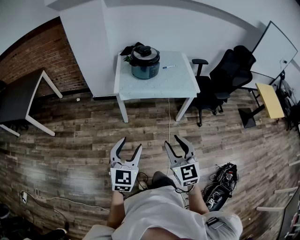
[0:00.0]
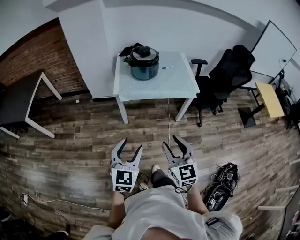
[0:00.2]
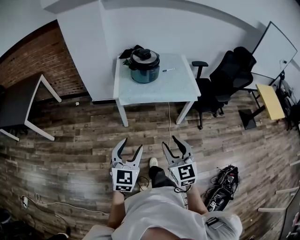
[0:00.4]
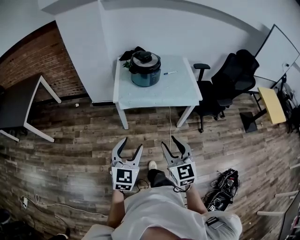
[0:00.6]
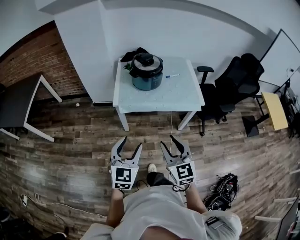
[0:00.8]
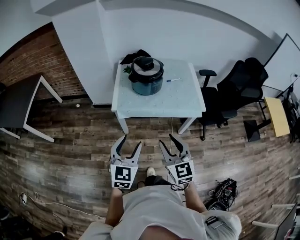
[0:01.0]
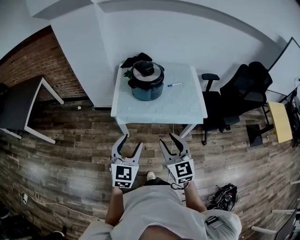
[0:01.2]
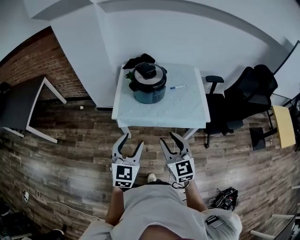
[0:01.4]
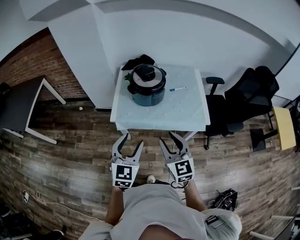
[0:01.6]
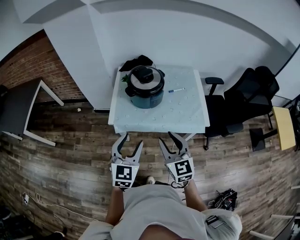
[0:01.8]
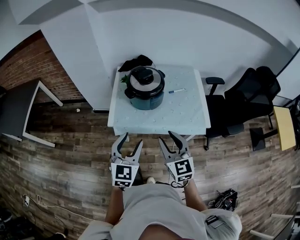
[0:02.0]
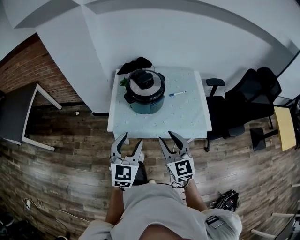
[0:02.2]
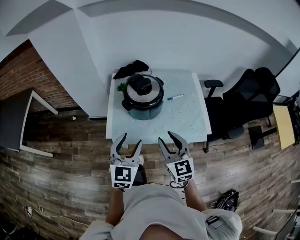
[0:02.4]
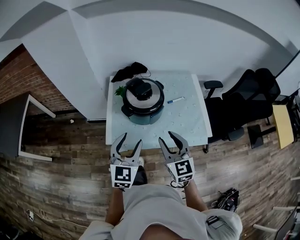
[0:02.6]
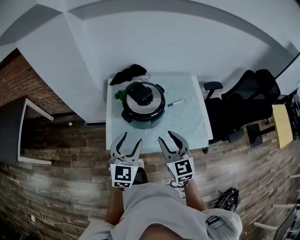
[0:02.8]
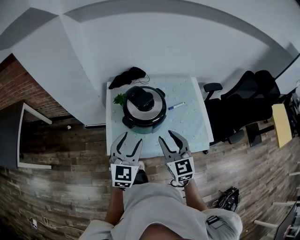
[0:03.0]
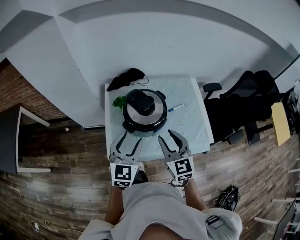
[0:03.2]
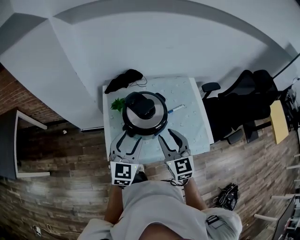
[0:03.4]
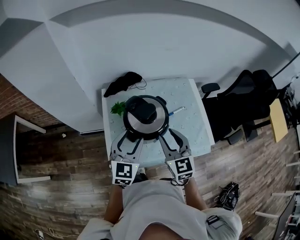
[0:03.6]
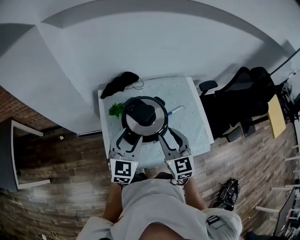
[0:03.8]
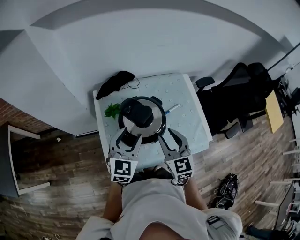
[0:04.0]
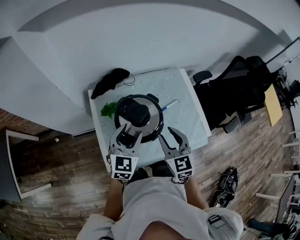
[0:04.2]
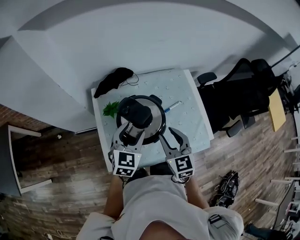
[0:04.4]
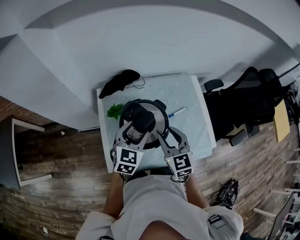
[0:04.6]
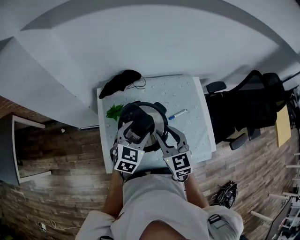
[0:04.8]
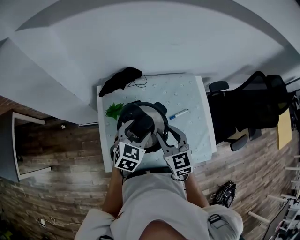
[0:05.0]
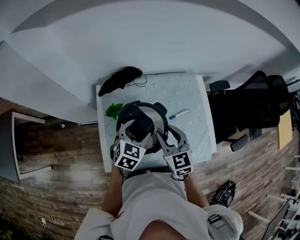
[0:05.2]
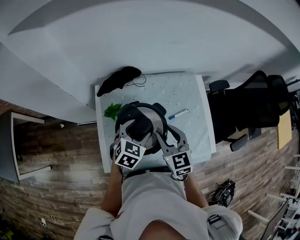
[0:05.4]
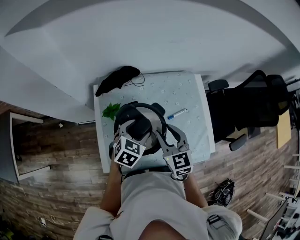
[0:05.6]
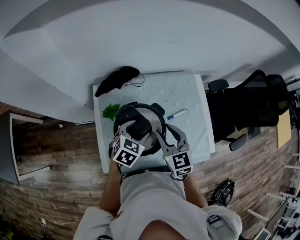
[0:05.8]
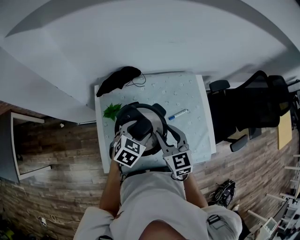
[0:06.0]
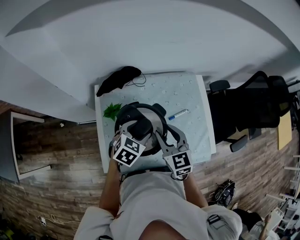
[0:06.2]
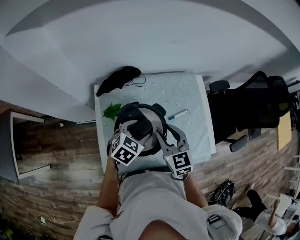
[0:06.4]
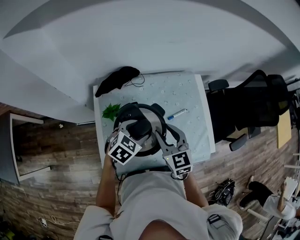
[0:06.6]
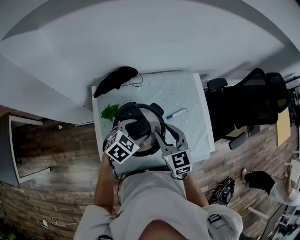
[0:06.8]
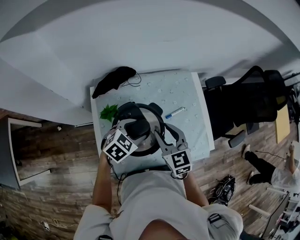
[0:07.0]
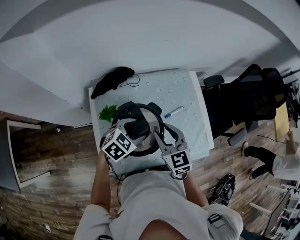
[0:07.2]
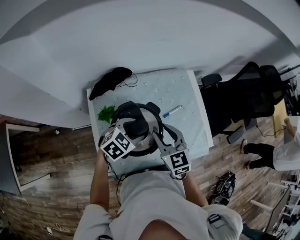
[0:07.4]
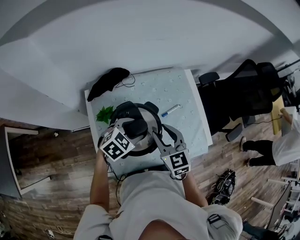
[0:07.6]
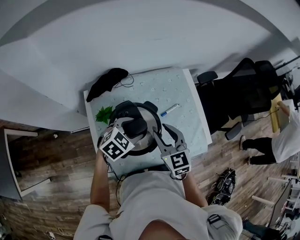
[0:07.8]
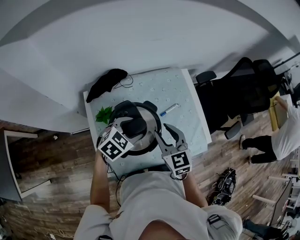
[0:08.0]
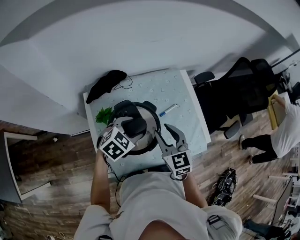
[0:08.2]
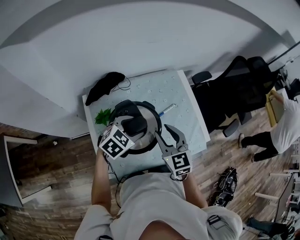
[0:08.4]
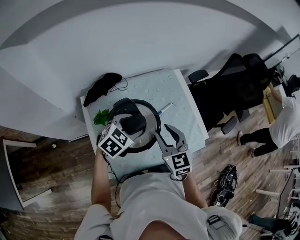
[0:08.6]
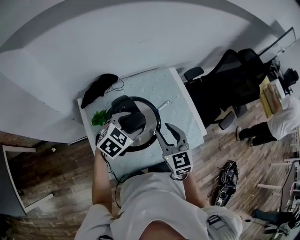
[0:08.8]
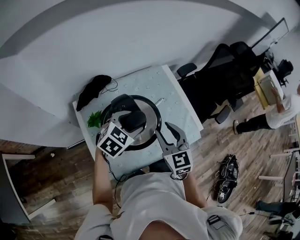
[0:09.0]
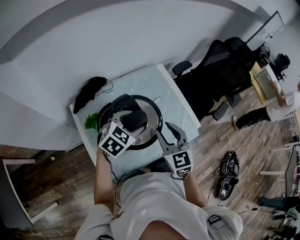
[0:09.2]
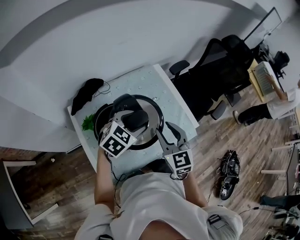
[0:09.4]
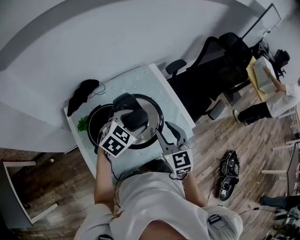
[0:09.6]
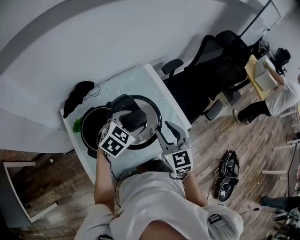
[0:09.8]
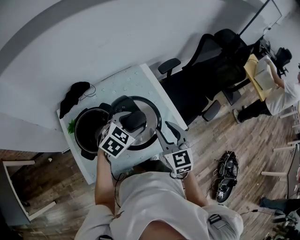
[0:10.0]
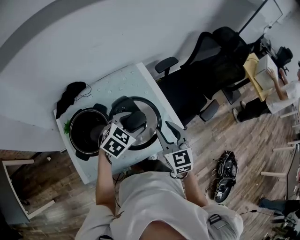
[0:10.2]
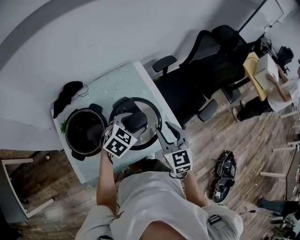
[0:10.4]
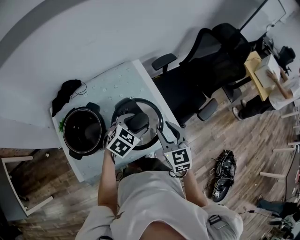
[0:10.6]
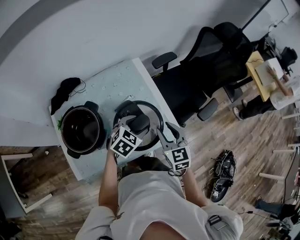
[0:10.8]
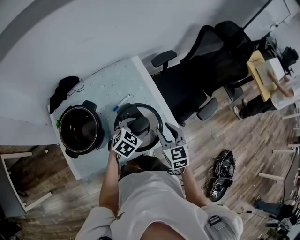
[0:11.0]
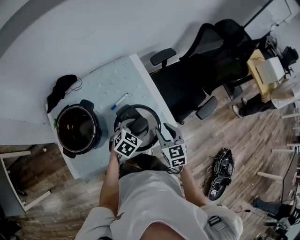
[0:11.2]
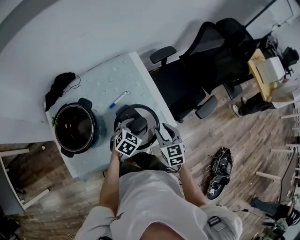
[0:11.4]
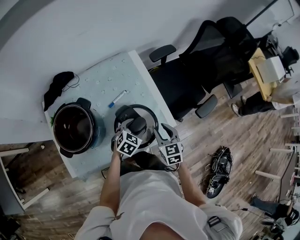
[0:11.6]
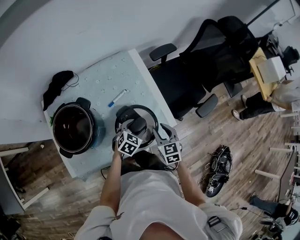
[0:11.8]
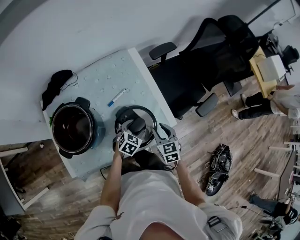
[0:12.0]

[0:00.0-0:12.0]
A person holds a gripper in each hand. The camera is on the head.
0:00.0 to 0:01.6: Both grippers travel together forward, some 30 cm.
0:01.6 to 0:03.0: Both grippers move forward, about 25 cm.
0:03.0 to 0:04.4: Both grippers move forward, roughly 15 cm.
0:04.4 to 0:06.0: The left gripper heads downward and forward, covering approximately 10 cm, and rotates some 20 degrees, while the right gripper goes about 10 cm forward.
0:06.0 to 0:07.6: The left gripper rotates some 20 degrees.
0:07.6 to 0:09.0: The left gripper travels upward by roughly 5 cm. The right gripper shifts approximately 5 cm to the right.
0:09.0 to 0:10.4: Both grippers travel together to the right, some 20 cm.
0:10.4 to 0:12.0: Both grippers travel together downward, about 20 cm.

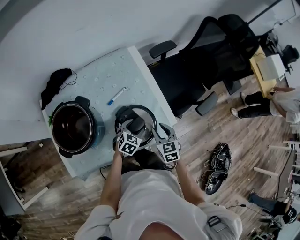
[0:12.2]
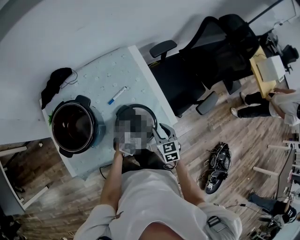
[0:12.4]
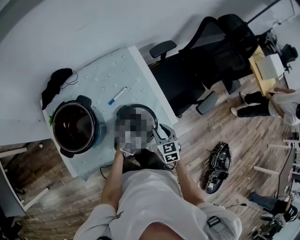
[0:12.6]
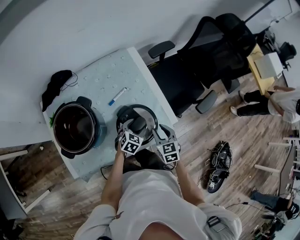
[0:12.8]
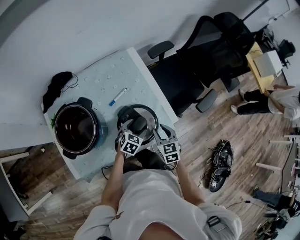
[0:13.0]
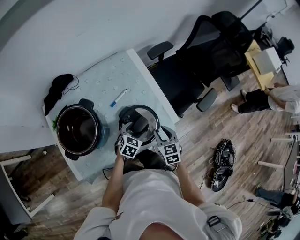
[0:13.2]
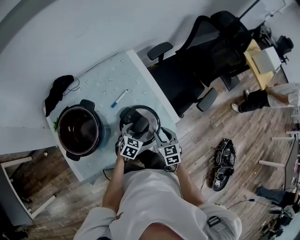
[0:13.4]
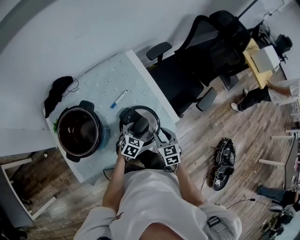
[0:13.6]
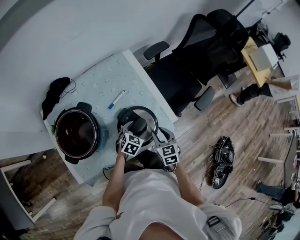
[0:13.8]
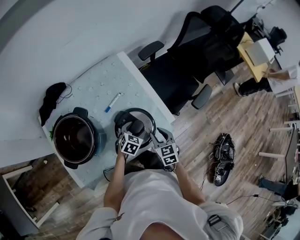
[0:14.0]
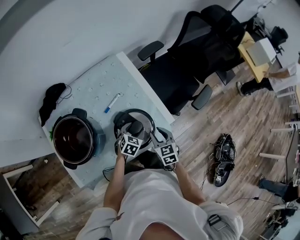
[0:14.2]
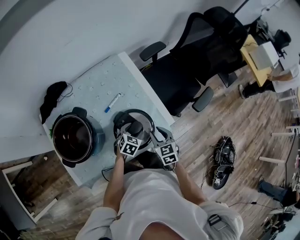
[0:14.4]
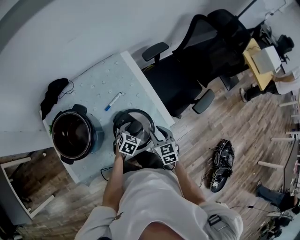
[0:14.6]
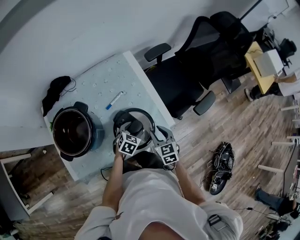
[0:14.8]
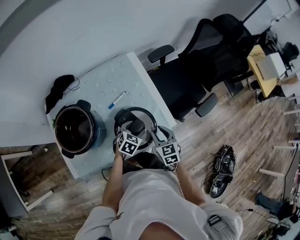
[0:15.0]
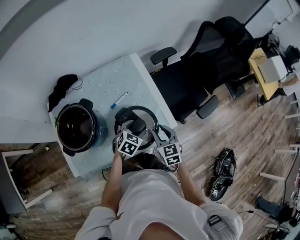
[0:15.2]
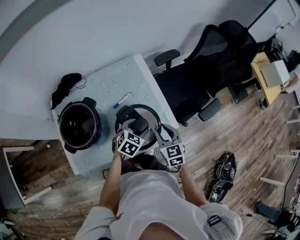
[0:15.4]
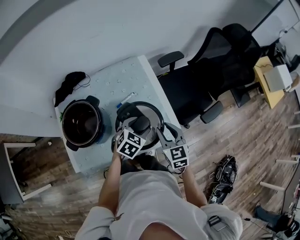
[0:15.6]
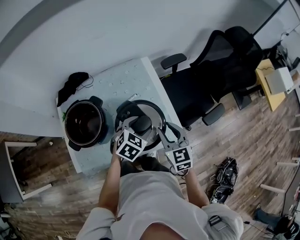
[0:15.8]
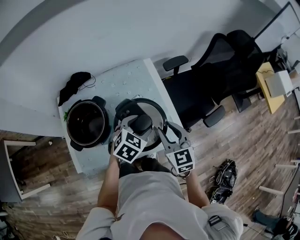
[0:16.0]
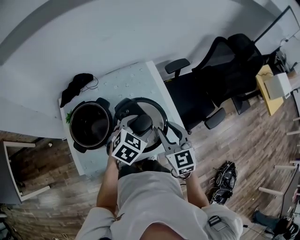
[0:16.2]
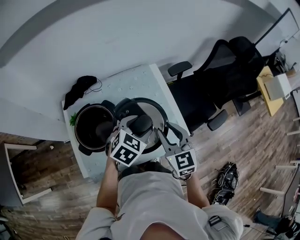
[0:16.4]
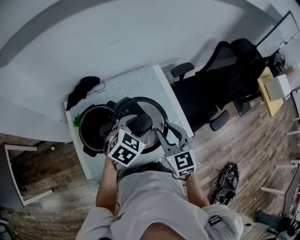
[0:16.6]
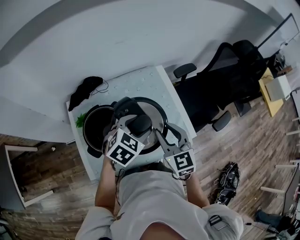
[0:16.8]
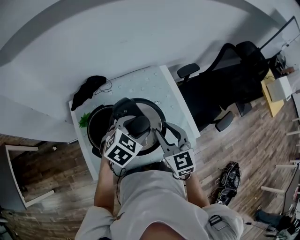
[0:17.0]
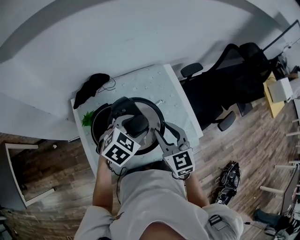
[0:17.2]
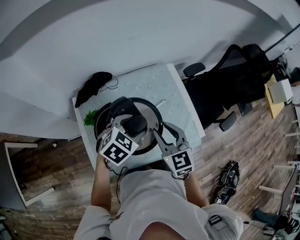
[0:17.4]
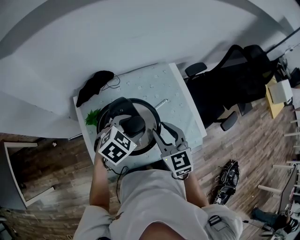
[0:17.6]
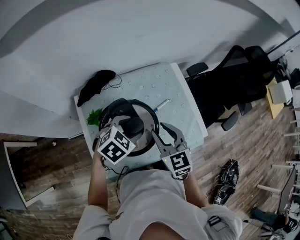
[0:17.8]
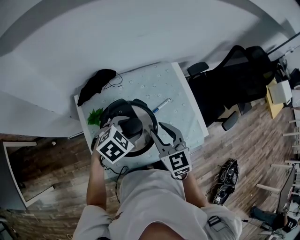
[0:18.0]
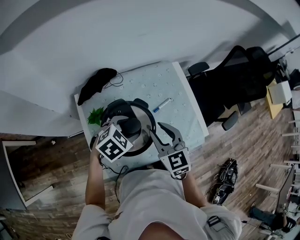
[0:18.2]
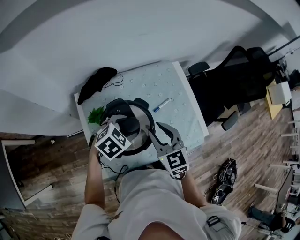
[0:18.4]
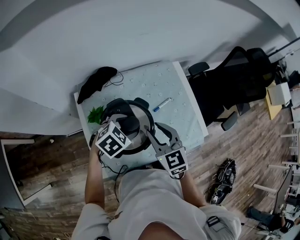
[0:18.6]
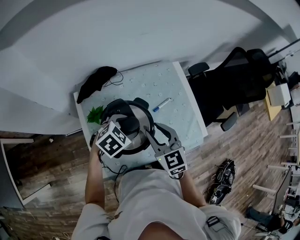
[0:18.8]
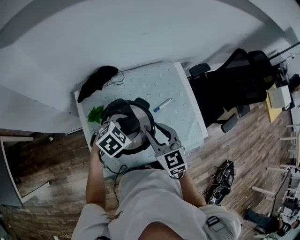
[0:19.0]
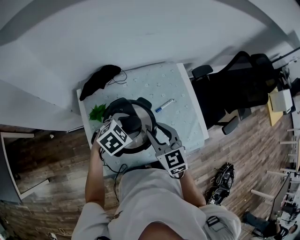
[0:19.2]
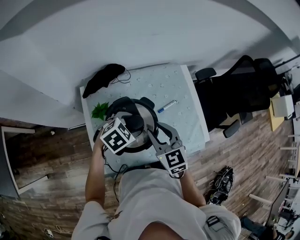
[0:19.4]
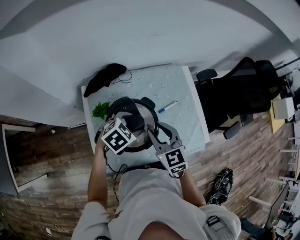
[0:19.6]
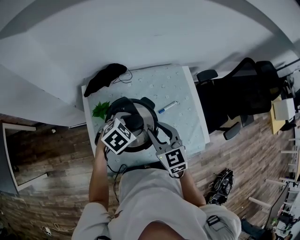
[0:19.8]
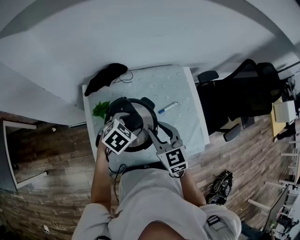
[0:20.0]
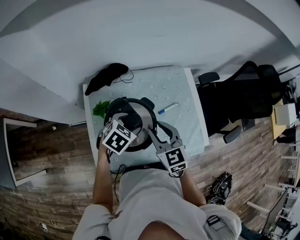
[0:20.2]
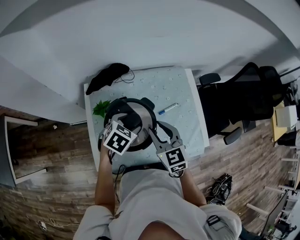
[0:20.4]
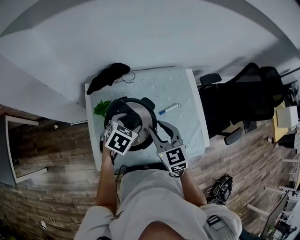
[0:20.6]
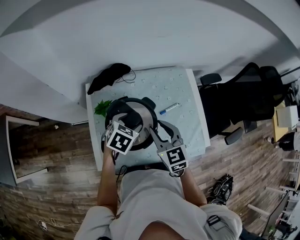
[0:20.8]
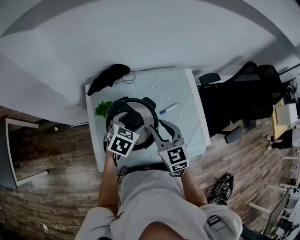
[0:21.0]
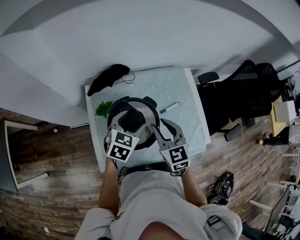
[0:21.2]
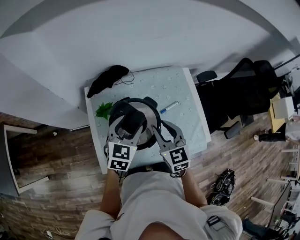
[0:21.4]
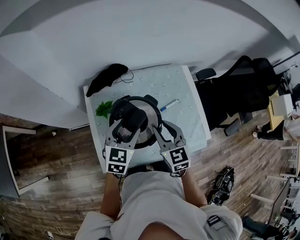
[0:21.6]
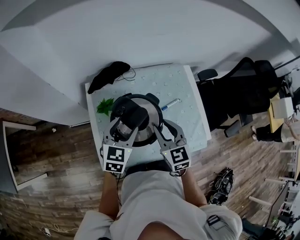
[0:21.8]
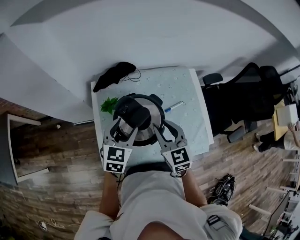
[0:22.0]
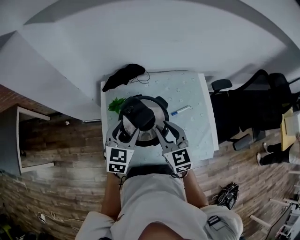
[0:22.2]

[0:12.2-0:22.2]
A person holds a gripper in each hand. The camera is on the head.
0:12.2 to 0:15.0: The grippers make only small movements.
0:15.0 to 0:16.4: The left gripper travels upward by roughly 20 cm, while the right gripper heads upward and to the left, covering some 25 cm, and rotates some 20 degrees.
0:16.4 to 0:18.0: The two grippers go some 20 cm to the left.
0:18.0 to 0:19.4: The grippers make only small movements.
0:19.4 to 0:20.8: The left gripper swivels approximately 30 degrees.
0:20.8 to 0:22.2: The left gripper shifts approximately 10 cm upward, to the left and backward, and turns by some 30 degrees.

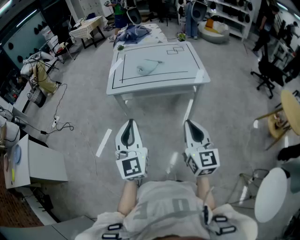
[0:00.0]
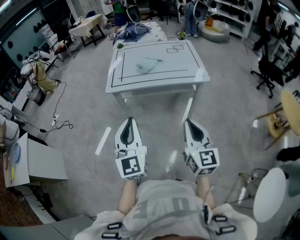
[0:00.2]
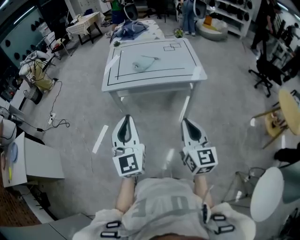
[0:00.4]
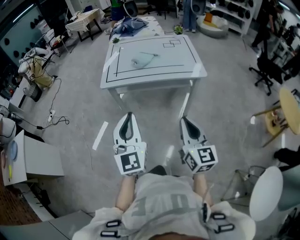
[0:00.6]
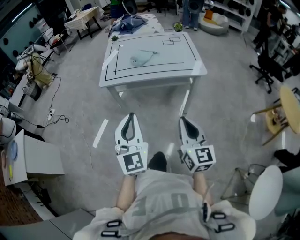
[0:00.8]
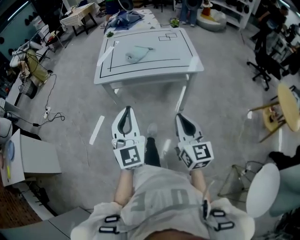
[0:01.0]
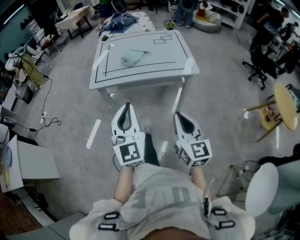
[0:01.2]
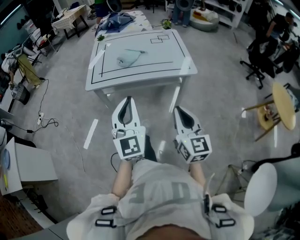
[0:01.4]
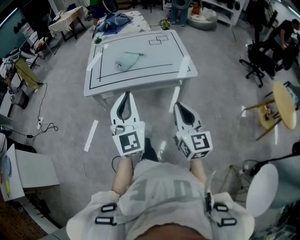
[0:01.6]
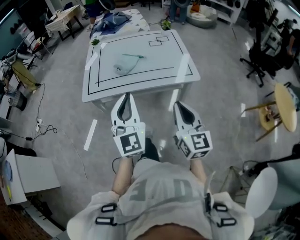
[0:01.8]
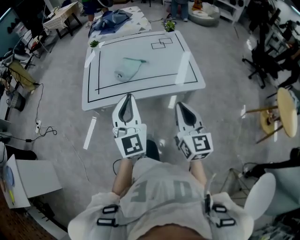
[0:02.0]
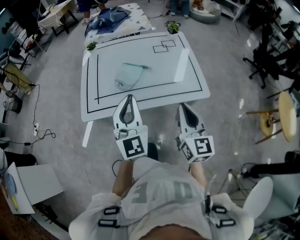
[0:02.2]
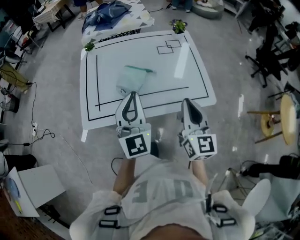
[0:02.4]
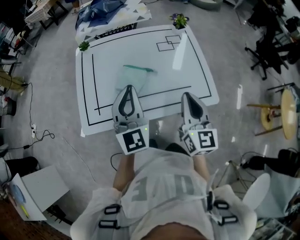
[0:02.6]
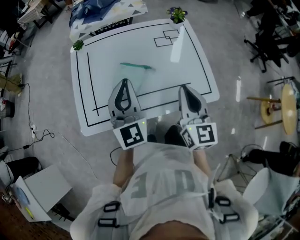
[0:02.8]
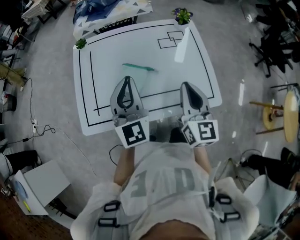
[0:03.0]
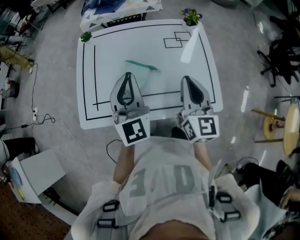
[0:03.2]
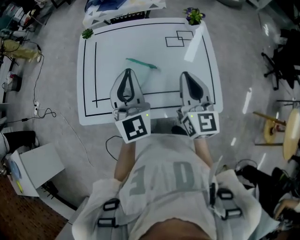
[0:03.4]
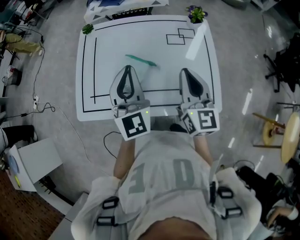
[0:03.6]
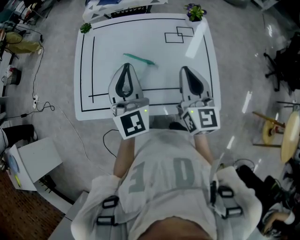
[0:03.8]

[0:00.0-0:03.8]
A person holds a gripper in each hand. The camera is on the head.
0:00.0 to 0:01.2: The left gripper shifts some 10 cm forward and to the right. Meanwhile the right gripper ends up approximately 5 cm from where it was.
0:01.2 to 0:02.6: The pair of grippers is taken forward, some 40 cm.
0:02.6 to 0:03.8: The right gripper is displaced forward by about 10 cm, while the left gripper travels forward by approximately 5 cm.
